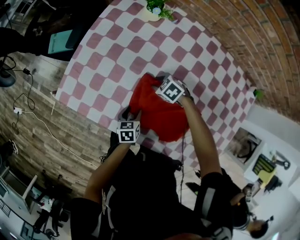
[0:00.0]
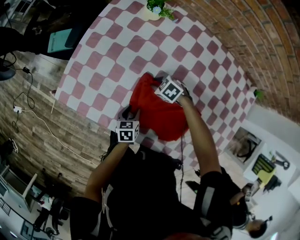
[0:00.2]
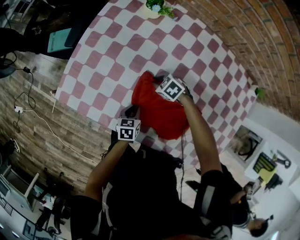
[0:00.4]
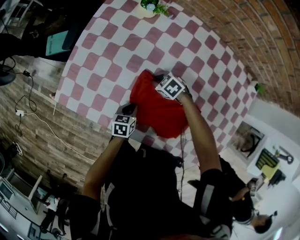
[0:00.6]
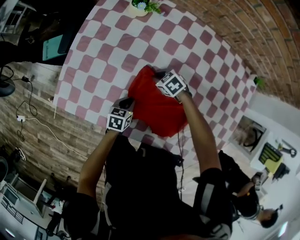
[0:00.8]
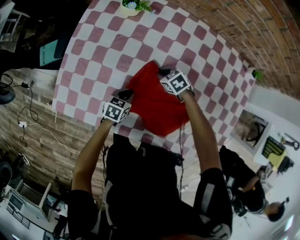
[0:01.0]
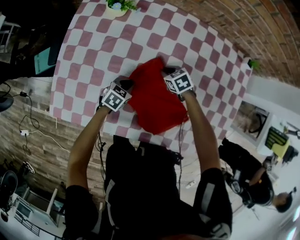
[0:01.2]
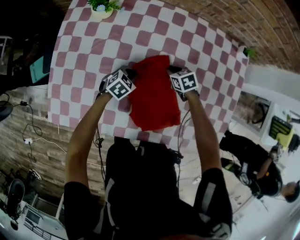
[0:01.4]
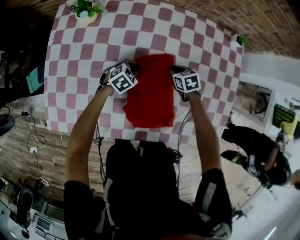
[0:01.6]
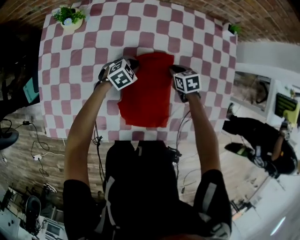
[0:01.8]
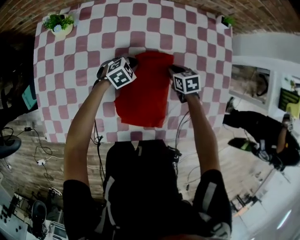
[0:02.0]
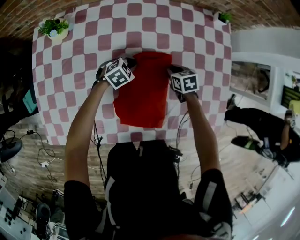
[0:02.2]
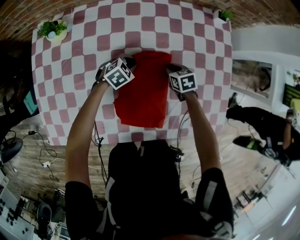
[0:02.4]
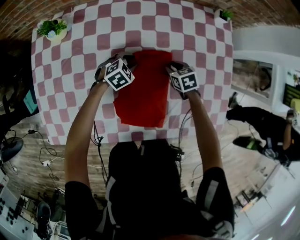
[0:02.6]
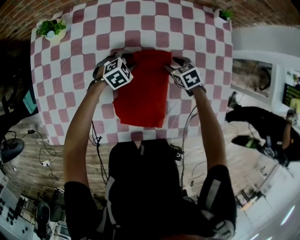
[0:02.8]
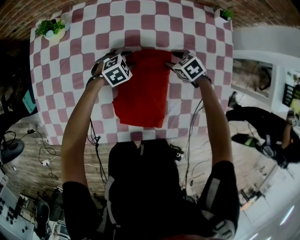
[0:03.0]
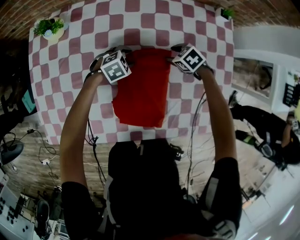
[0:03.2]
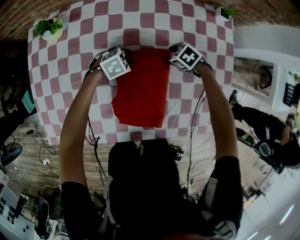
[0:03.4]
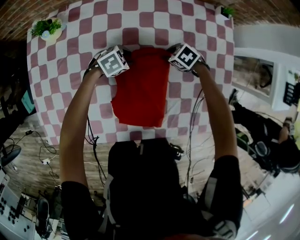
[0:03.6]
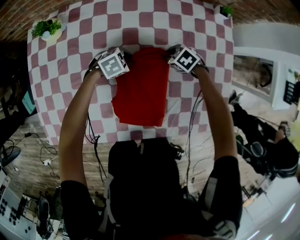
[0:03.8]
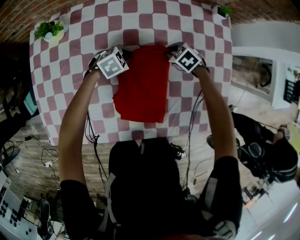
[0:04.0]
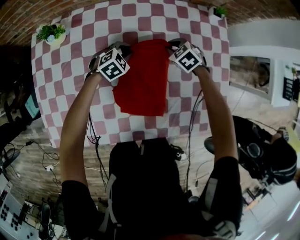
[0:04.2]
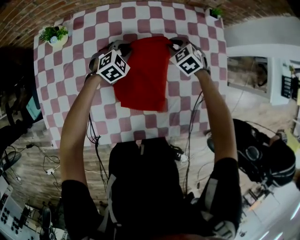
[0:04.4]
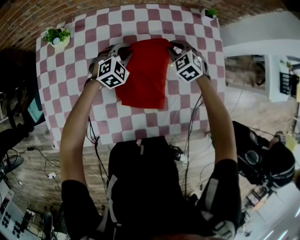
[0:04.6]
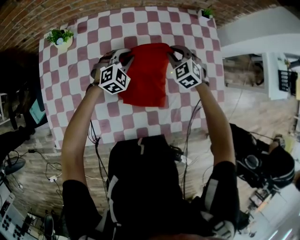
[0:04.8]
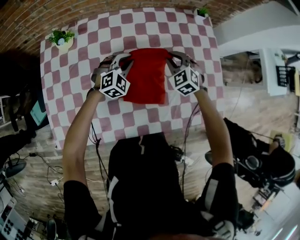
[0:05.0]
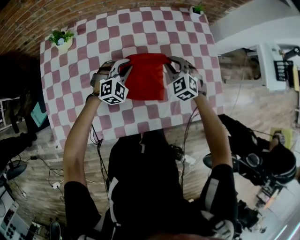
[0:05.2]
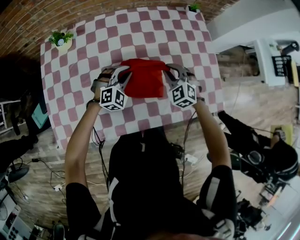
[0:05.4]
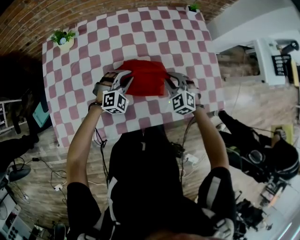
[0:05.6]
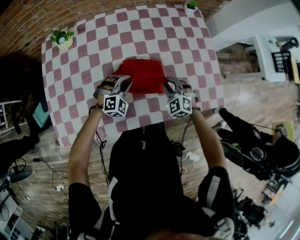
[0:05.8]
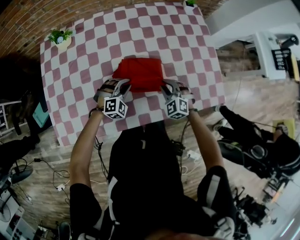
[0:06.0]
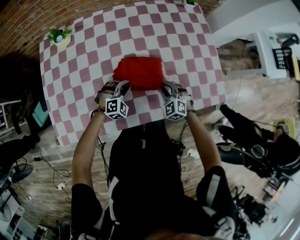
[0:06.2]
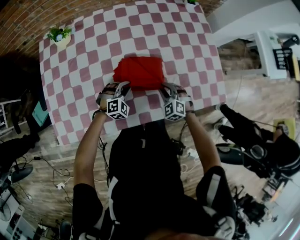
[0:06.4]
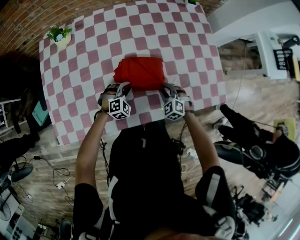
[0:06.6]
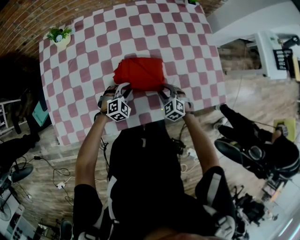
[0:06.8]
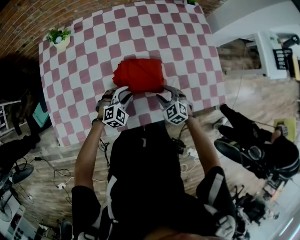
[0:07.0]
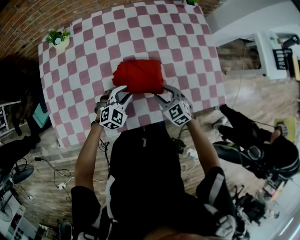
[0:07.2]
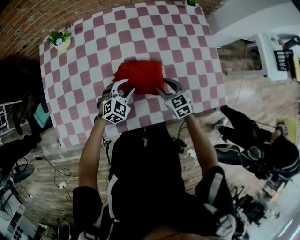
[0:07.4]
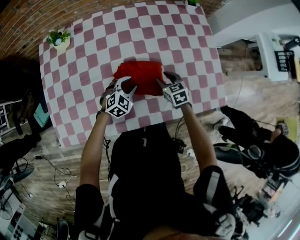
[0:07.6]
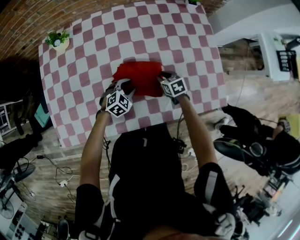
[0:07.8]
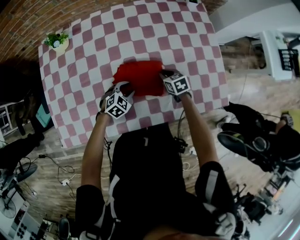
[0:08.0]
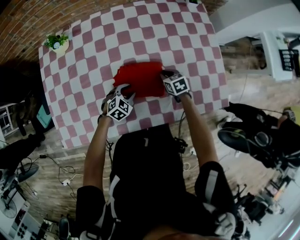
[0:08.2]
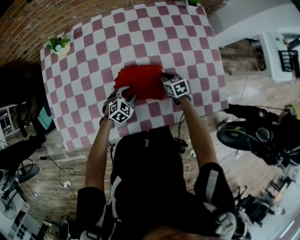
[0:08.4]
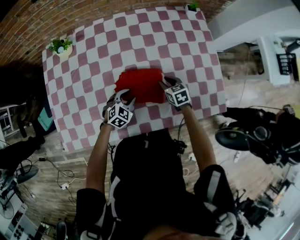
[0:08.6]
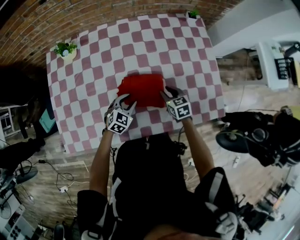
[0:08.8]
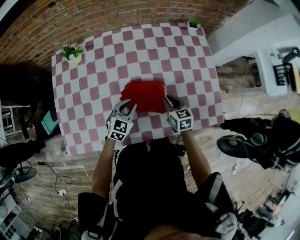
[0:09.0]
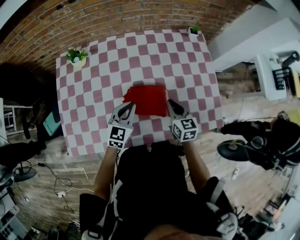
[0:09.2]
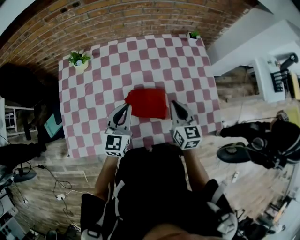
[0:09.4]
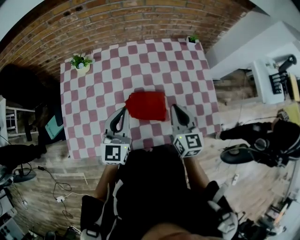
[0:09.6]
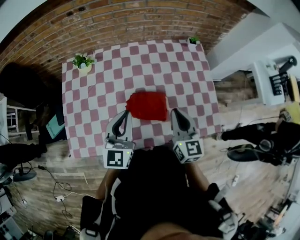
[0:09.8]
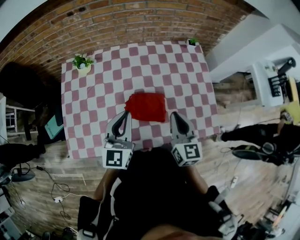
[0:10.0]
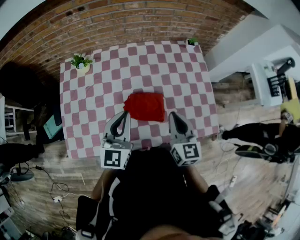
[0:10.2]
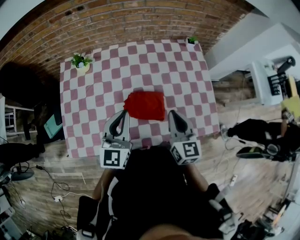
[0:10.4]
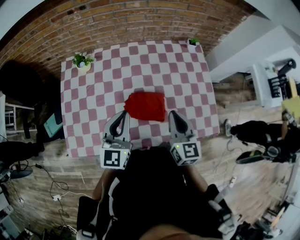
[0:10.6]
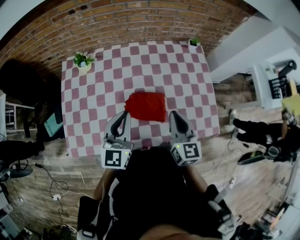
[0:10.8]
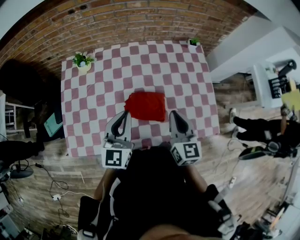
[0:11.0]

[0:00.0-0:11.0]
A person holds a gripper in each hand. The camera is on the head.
0:00.0 to 0:01.6: The left gripper moves some 25 cm, twists about 70 degrees clockwise, seen from behind, and closes up; the right gripper shifts by about 30 cm, twists approximately 50 degrees clockwise, seen from behind, and closes.
0:01.6 to 0:03.2: The right gripper changes place by some 10 cm, rotates roughly 20 degrees, and opens its fingers. Meanwhile the left gripper moves some 10 cm, and opens up.
0:03.2 to 0:04.8: The grippers both shift upward by some 15 cm. The left gripper swivels approximately 40 degrees, and closes its fingers. Meanwhile the right gripper turns by roughly 40 degrees, and closes up.
0:04.8 to 0:06.2: Both grippers move backward, approximately 25 cm.
0:06.2 to 0:07.8: The right gripper travels forward by approximately 10 cm, and twists approximately 40 degrees clockwise, seen from behind. Meanwhile the left gripper moves some 5 cm upward and comes back, and turns by roughly 30 degrees.
0:07.8 to 0:09.4: Both grippers move upward, about 30 cm. The left gripper angles its fingers upward, by approximately 40 degrees, and closes up, while the right gripper tilts its fingers roughly 30 degrees upward, and closes up.
0:09.4 to 0:11.0: Both grippers travel together upward, approximately 10 cm.

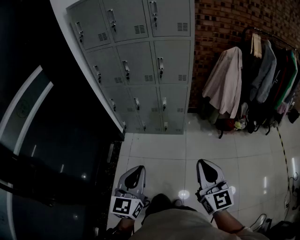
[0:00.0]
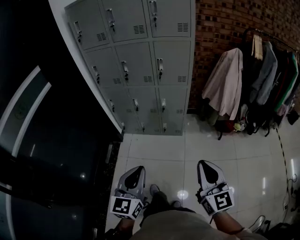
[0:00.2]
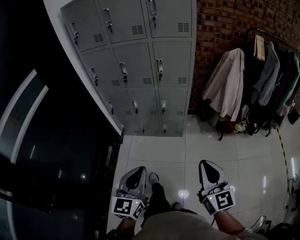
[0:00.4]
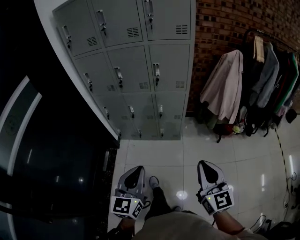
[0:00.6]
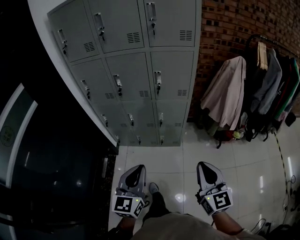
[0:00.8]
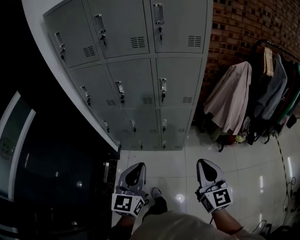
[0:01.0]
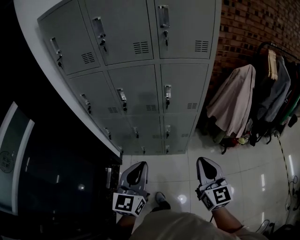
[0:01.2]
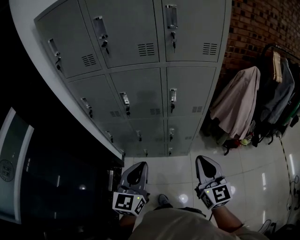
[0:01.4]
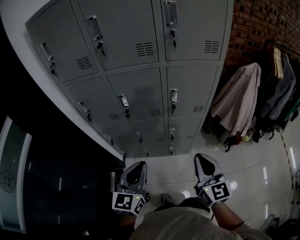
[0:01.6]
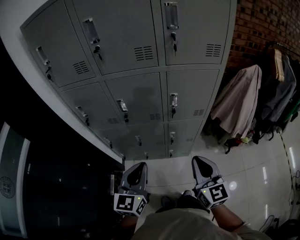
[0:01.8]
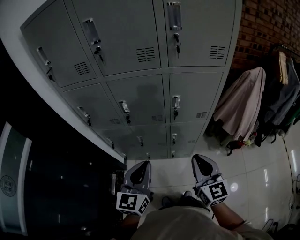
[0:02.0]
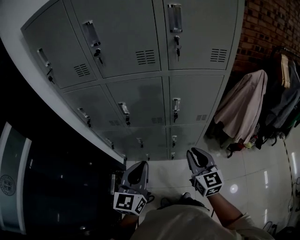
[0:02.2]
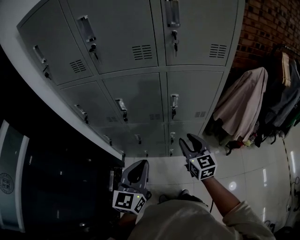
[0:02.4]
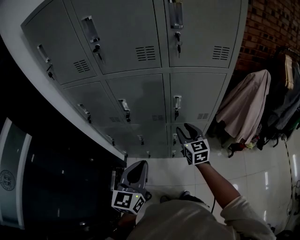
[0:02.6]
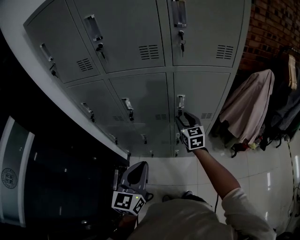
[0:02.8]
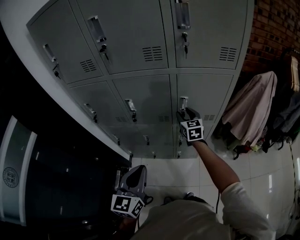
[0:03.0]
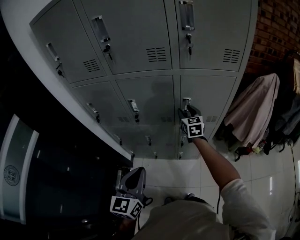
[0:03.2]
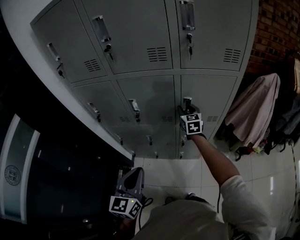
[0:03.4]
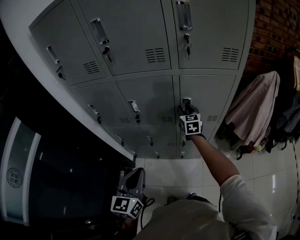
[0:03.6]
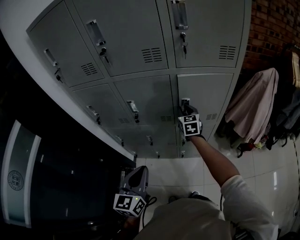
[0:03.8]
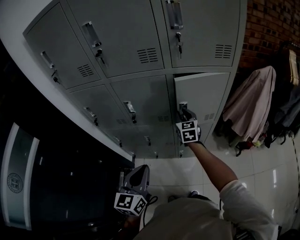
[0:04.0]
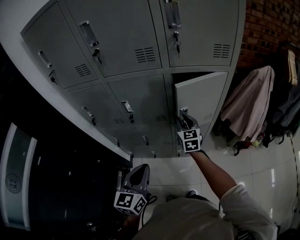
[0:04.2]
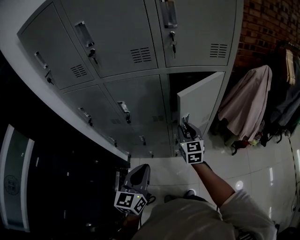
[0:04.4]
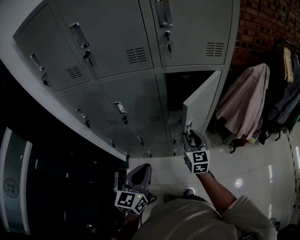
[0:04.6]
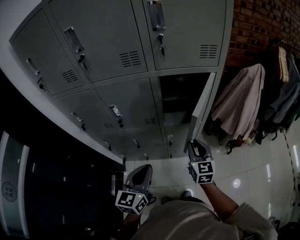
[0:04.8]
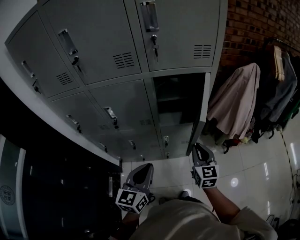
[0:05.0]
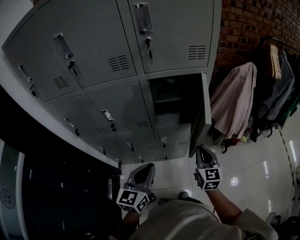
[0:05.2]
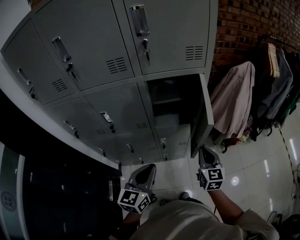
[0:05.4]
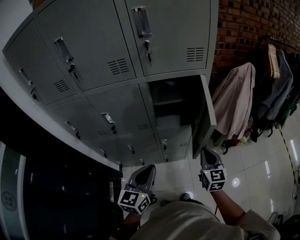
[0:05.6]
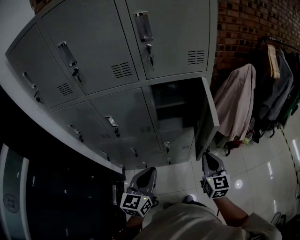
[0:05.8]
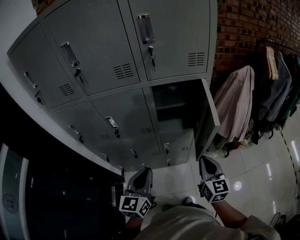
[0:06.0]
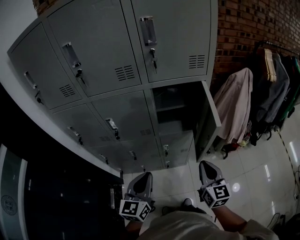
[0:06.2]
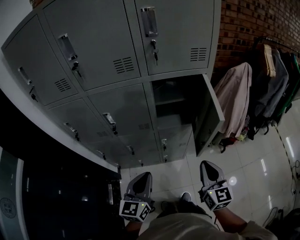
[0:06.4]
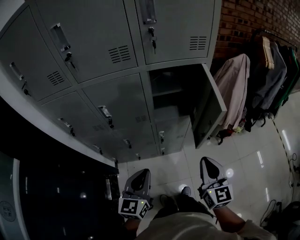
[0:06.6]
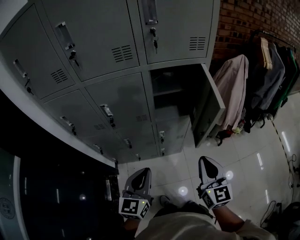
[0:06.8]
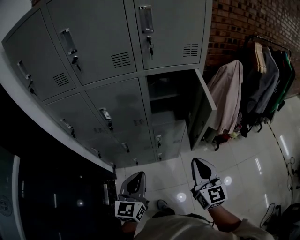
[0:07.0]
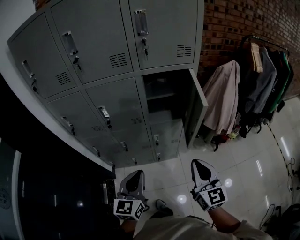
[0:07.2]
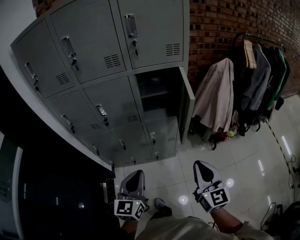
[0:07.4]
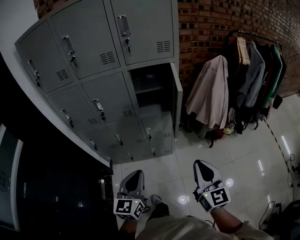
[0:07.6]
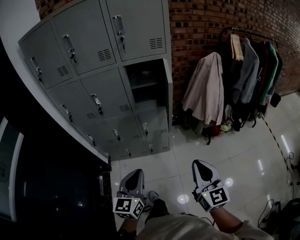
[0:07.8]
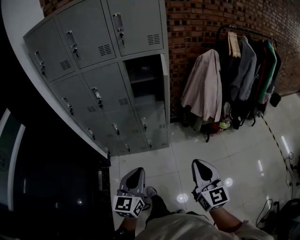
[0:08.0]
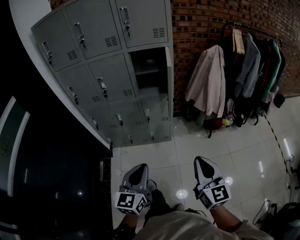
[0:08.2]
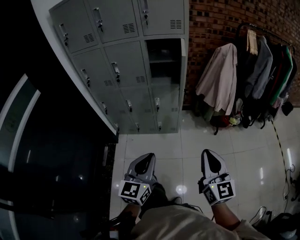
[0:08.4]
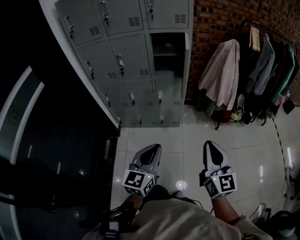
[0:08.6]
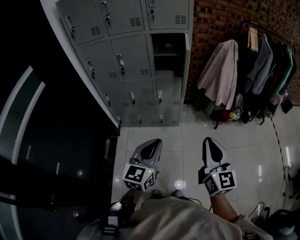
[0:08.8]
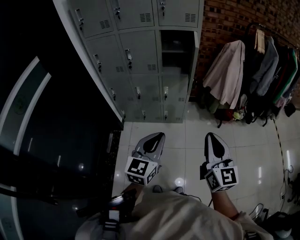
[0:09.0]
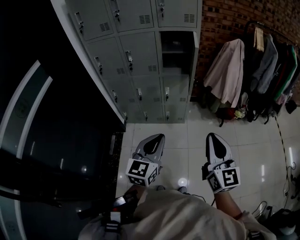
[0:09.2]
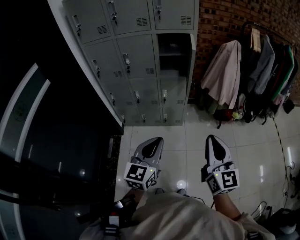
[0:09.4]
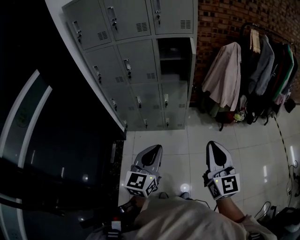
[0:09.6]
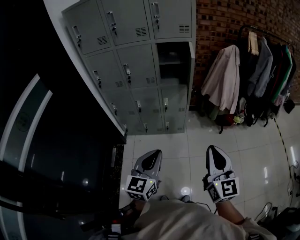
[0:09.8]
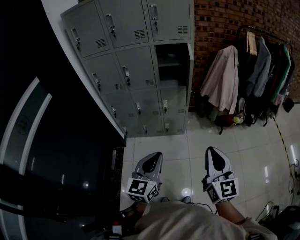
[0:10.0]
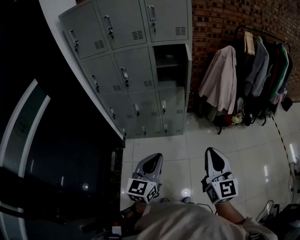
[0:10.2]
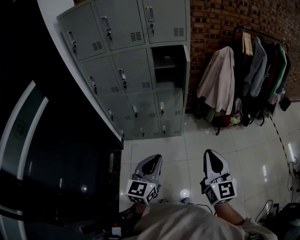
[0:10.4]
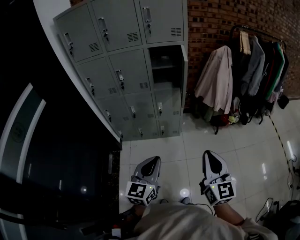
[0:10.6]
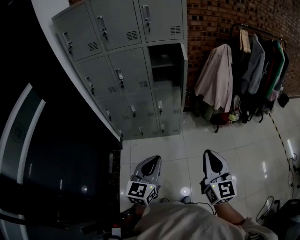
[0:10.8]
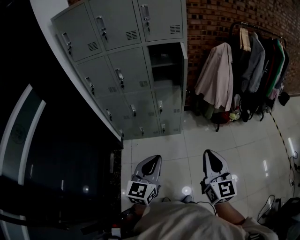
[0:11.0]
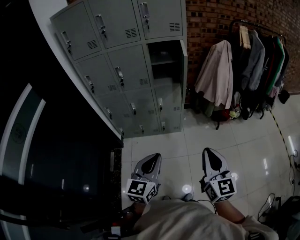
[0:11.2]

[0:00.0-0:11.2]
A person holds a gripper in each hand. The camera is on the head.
0:00.0 to 0:01.6: The pair of grippers is taken forward, some 40 cm.
0:01.6 to 0:03.2: The right gripper travels forward by approximately 40 cm, and opens. Meanwhile the left gripper ends up some 5 cm from where it was.
0:03.2 to 0:04.8: The right gripper heads backward and to the right, covering about 25 cm, and closes its fingers. Meanwhile the left gripper shifts some 10 cm to the right.
0:04.8 to 0:06.4: The right gripper heads backward, upward and to the right, covering approximately 15 cm.
0:06.4 to 0:08.0: The two grippers go roughly 35 cm backward and to the right.
0:08.0 to 0:09.6: The right gripper moves backward and upward, some 10 cm. Meanwhile the left gripper shifts approximately 10 cm backward.
0:09.6 to 0:11.2: The grippers move only a little.

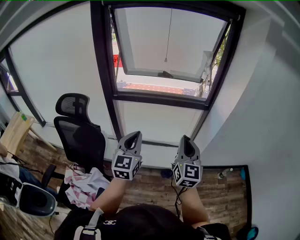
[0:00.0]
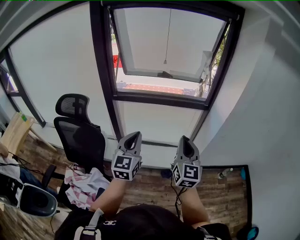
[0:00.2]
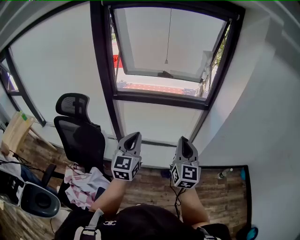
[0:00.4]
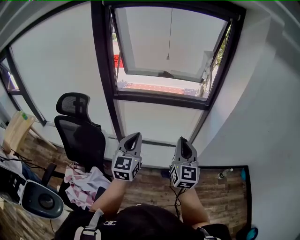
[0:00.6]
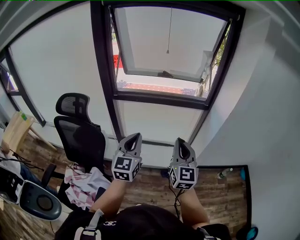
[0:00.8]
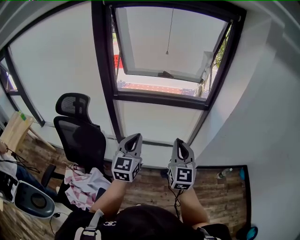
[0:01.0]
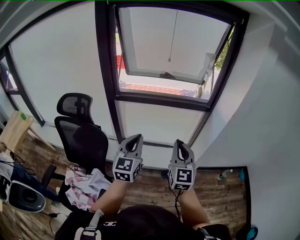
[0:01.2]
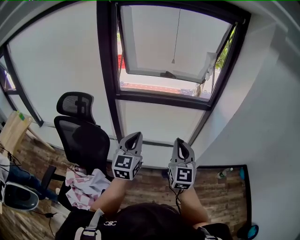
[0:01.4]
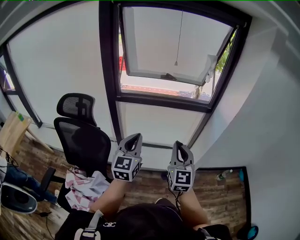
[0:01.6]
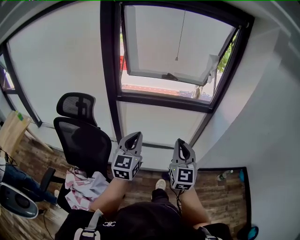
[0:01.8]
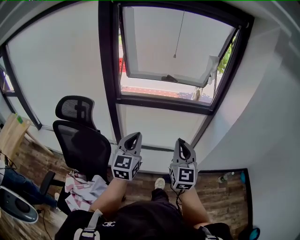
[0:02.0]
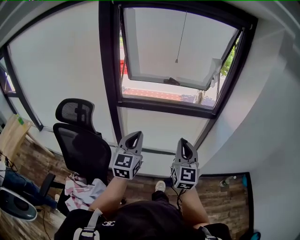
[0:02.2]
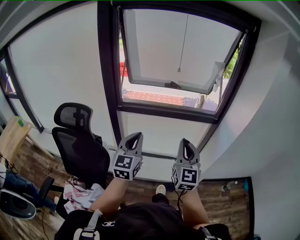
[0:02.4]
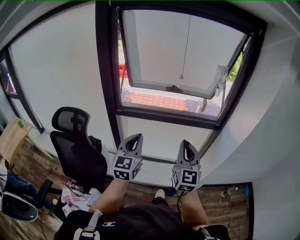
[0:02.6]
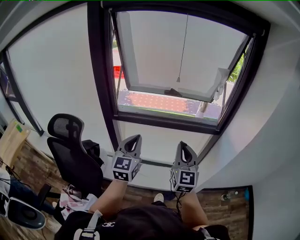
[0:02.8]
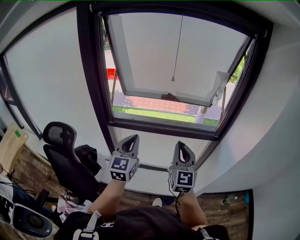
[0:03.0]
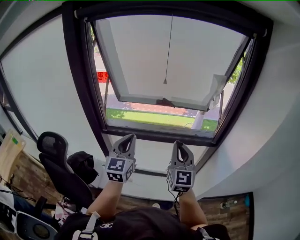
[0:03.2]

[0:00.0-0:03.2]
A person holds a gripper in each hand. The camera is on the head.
0:00.0 to 0:01.6: Both grippers travel together to the left, roughly 5 cm.
0:01.6 to 0:03.2: The grippers both shift forward by roughly 30 cm.
